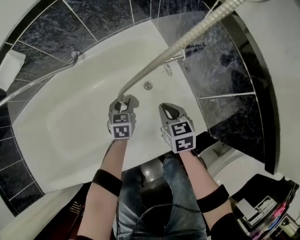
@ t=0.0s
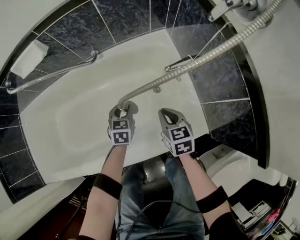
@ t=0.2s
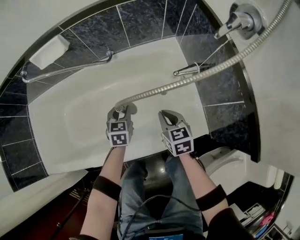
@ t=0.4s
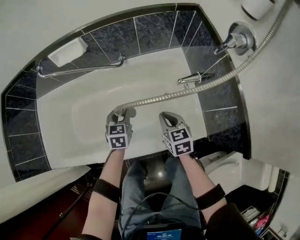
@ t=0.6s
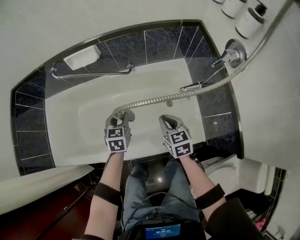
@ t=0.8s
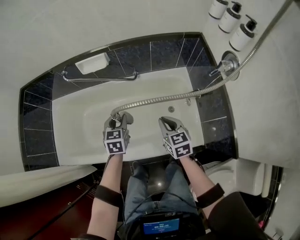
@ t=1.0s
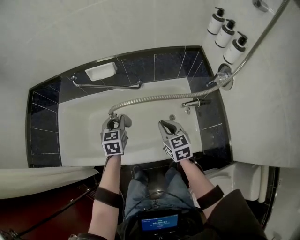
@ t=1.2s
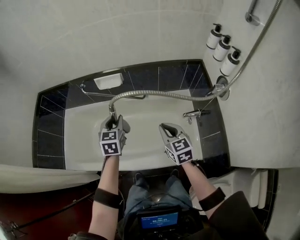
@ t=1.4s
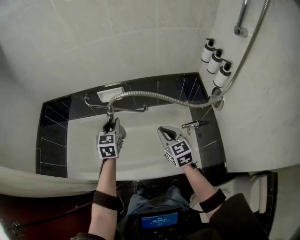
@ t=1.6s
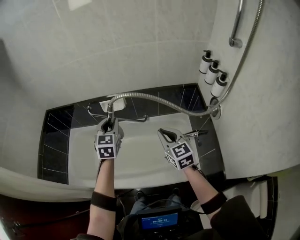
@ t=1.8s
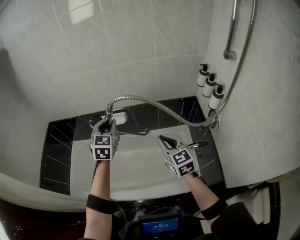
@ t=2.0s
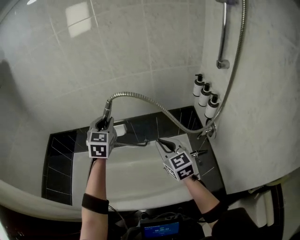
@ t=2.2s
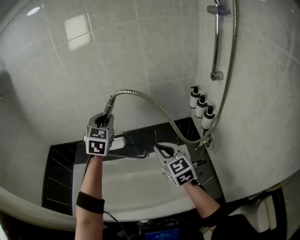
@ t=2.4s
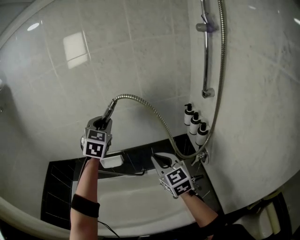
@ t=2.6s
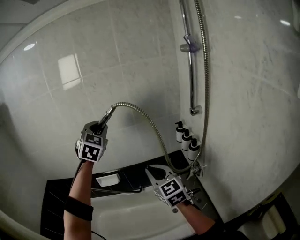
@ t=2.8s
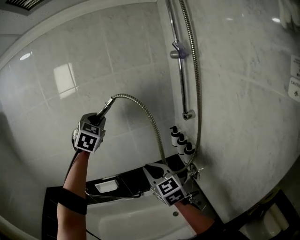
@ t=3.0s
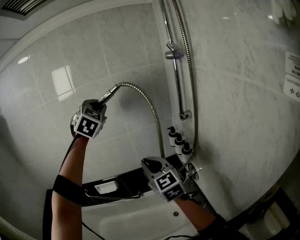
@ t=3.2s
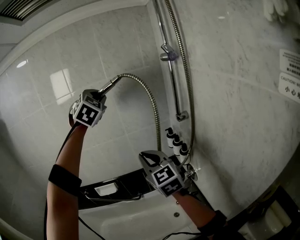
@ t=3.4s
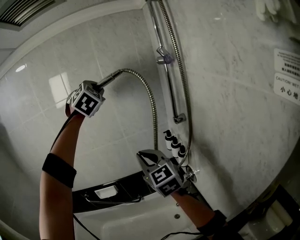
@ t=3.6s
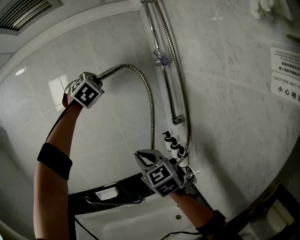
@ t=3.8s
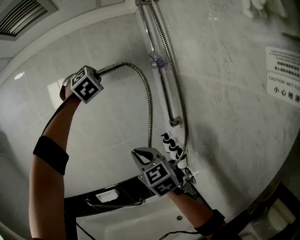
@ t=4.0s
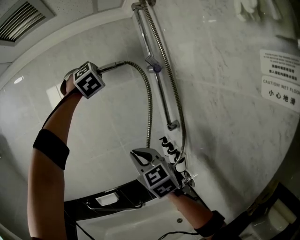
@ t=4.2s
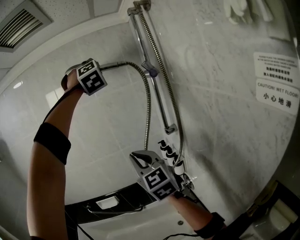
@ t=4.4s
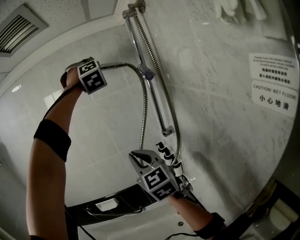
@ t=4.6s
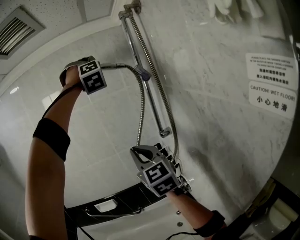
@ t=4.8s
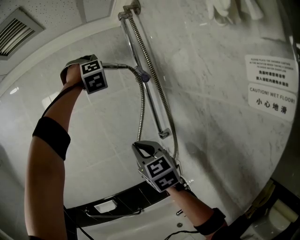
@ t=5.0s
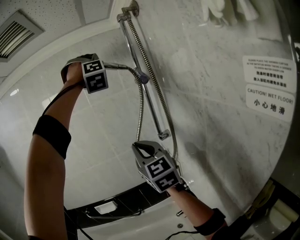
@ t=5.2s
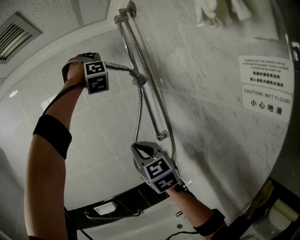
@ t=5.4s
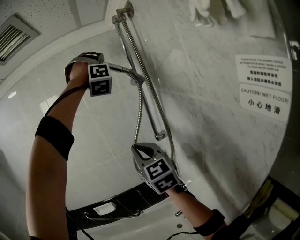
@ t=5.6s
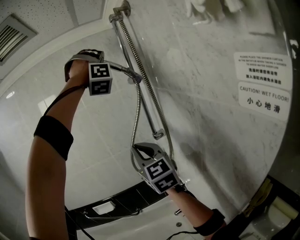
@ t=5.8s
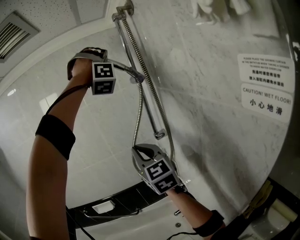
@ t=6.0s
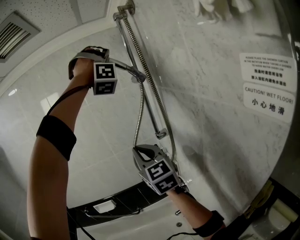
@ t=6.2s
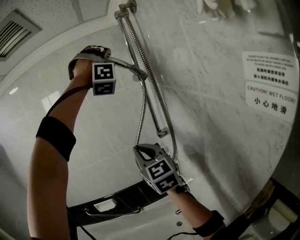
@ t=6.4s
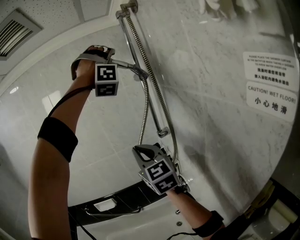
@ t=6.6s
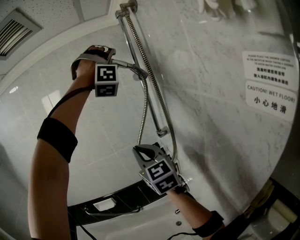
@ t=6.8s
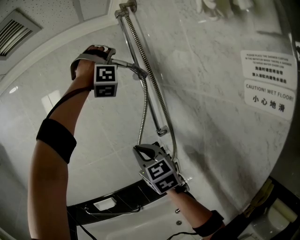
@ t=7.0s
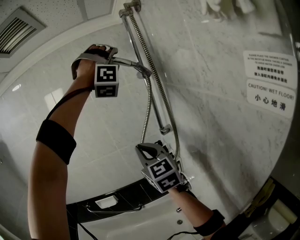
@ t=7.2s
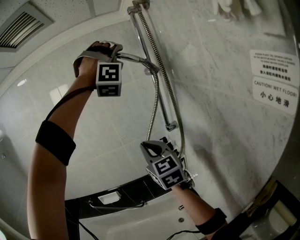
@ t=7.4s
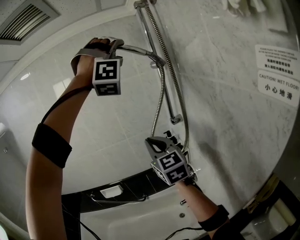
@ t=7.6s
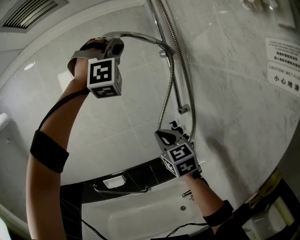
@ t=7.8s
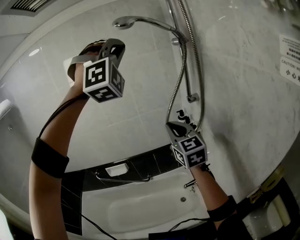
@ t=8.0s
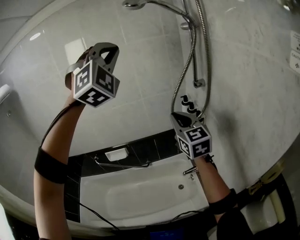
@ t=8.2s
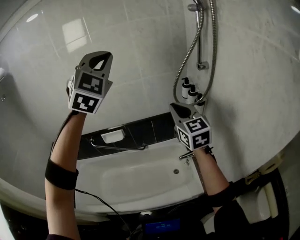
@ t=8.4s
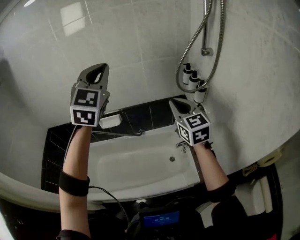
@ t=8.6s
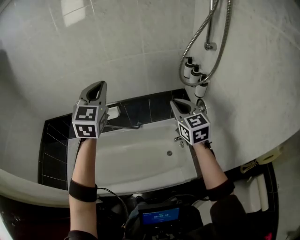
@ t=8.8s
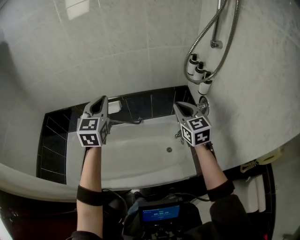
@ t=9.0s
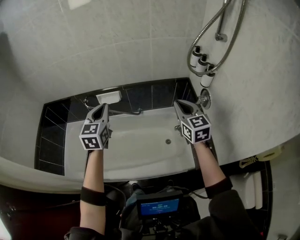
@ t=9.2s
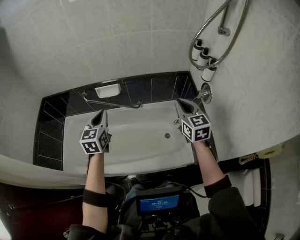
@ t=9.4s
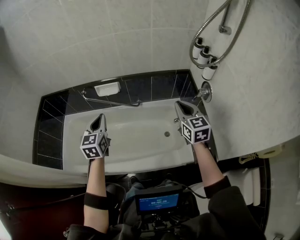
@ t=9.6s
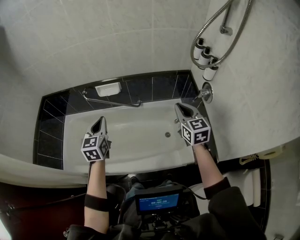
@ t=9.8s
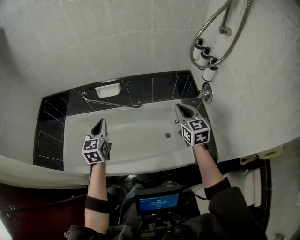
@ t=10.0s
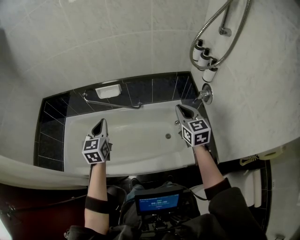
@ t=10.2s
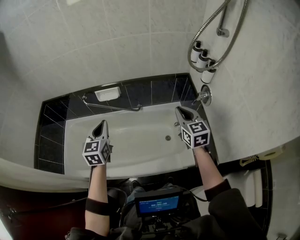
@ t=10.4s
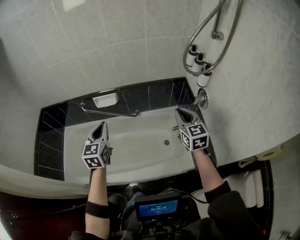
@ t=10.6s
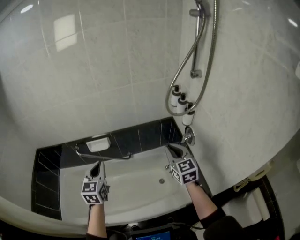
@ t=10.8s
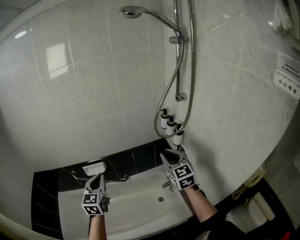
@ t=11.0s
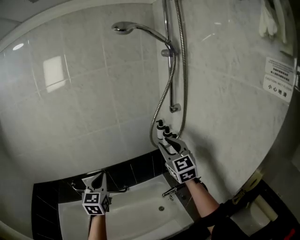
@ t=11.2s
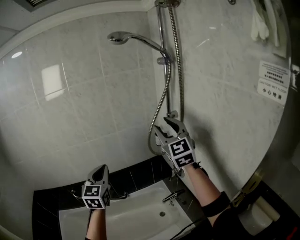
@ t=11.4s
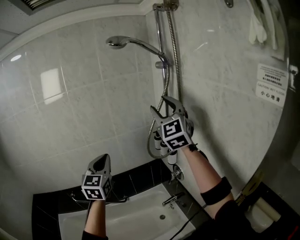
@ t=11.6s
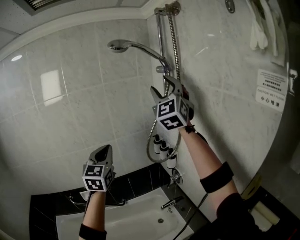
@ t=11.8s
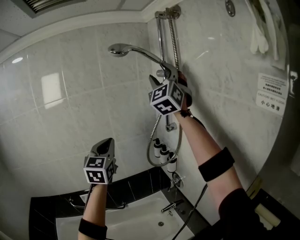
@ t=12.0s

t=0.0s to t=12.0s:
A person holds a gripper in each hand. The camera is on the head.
t=0.0s to t=1.6s: The grippers both shift upward by some 60 cm. The left gripper turns by about 30 degrees, while the right gripper changes its angle by some 40 degrees.
t=1.6s to t=3.0s: The right gripper goes roughly 30 cm upward, and swivels roughly 20 degrees. The left gripper is displaced upward and to the right by about 50 cm, and rolls clockwise, seen from behind, by roughly 40 degrees.
t=3.0s to t=4.4s: The left gripper goes some 30 cm upward and to the right, and twists some 40 degrees clockwise, seen from behind, while the right gripper is displaced upward by some 15 cm.
t=4.4s to t=6.0s: The two grippers go approximately 10 cm to the right. The left gripper changes its angle by roughly 40 degrees.
t=6.0s to t=7.6s: The right gripper shifts by about 5 cm, while the left gripper heads backward, covering approximately 10 cm, and opens.
t=7.6s to t=9.0s: The right gripper shifts roughly 25 cm downward, and rotates some 20 degrees, while the left gripper moves downward and to the left, approximately 60 cm, rolls counterclockwise, seen from behind, by approximately 110 degrees, and closes up.
t=9.0s to t=10.4s: The right gripper is displaced downward by approximately 10 cm, while the left gripper shifts roughly 15 cm downward and backward.
t=10.4s to t=12.0s: The left gripper travels upward by about 35 cm, and turns by about 40 degrees, while the right gripper heads upward, covering roughly 60 cm, tips its fingers upward by some 40 degrees, and opens.

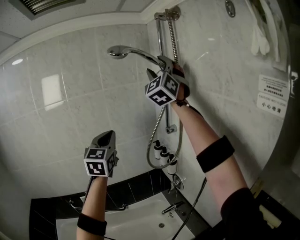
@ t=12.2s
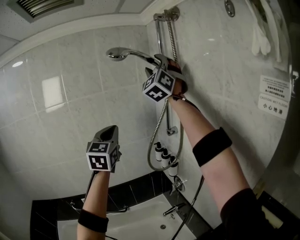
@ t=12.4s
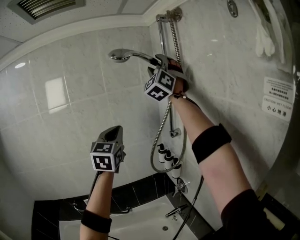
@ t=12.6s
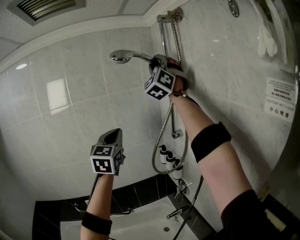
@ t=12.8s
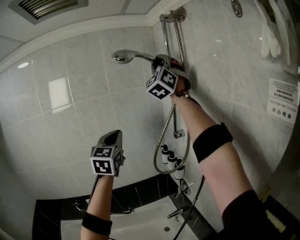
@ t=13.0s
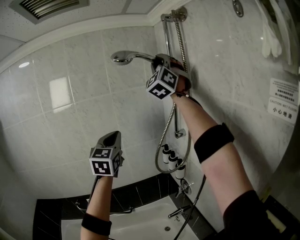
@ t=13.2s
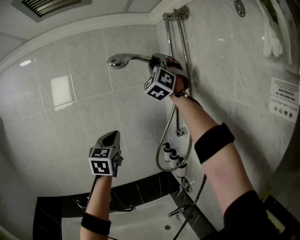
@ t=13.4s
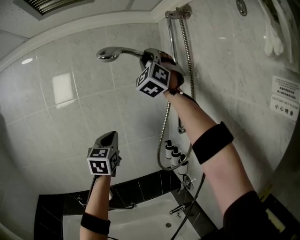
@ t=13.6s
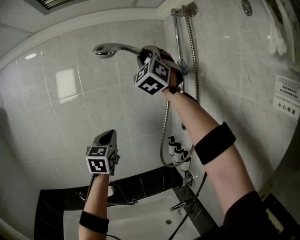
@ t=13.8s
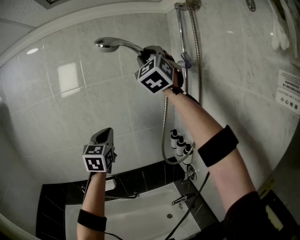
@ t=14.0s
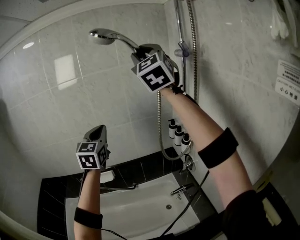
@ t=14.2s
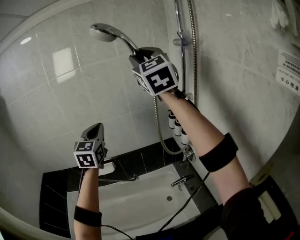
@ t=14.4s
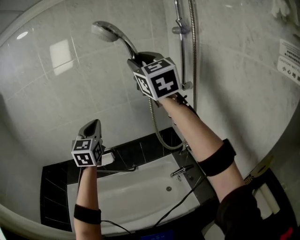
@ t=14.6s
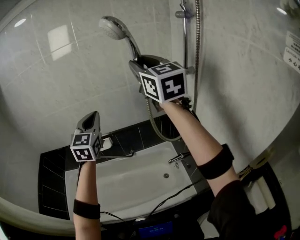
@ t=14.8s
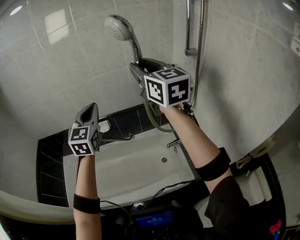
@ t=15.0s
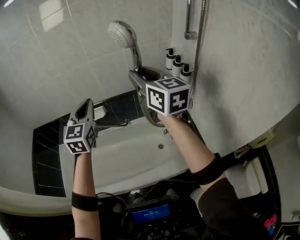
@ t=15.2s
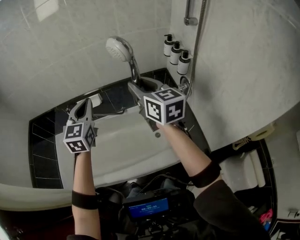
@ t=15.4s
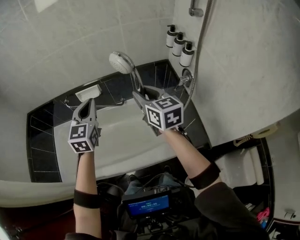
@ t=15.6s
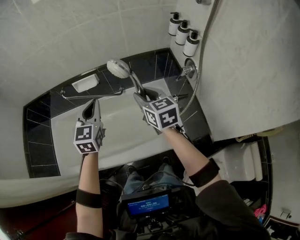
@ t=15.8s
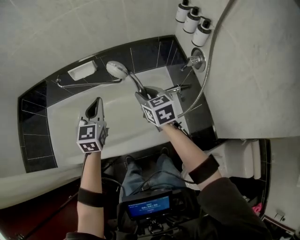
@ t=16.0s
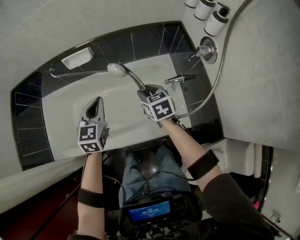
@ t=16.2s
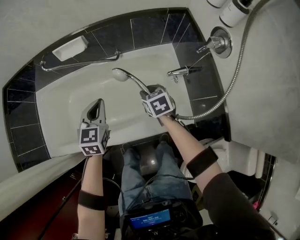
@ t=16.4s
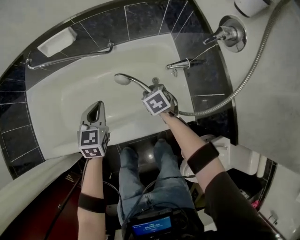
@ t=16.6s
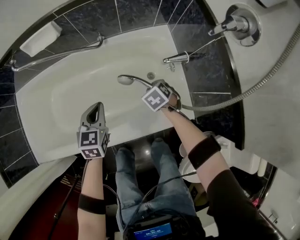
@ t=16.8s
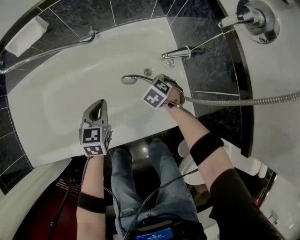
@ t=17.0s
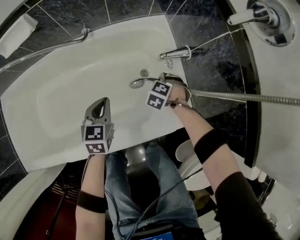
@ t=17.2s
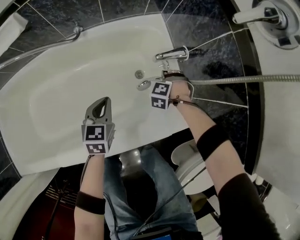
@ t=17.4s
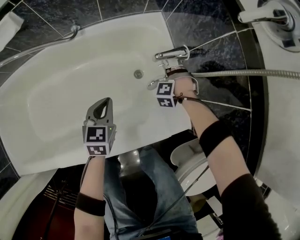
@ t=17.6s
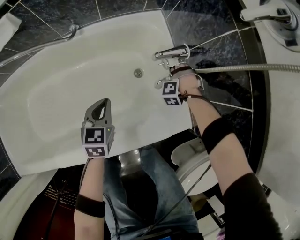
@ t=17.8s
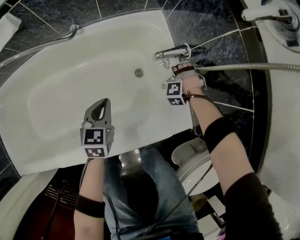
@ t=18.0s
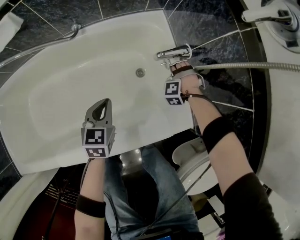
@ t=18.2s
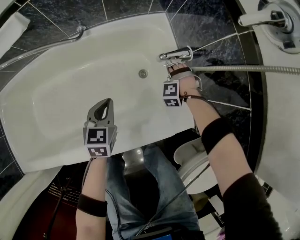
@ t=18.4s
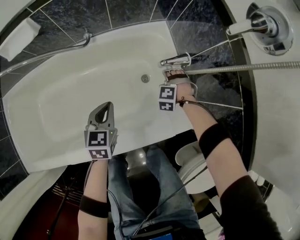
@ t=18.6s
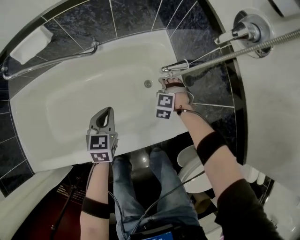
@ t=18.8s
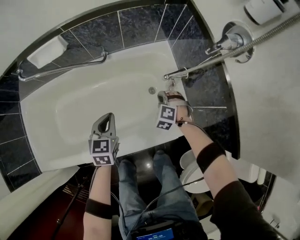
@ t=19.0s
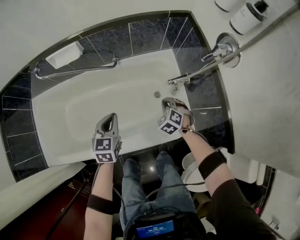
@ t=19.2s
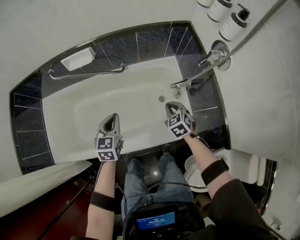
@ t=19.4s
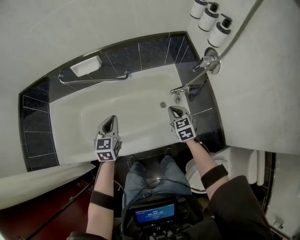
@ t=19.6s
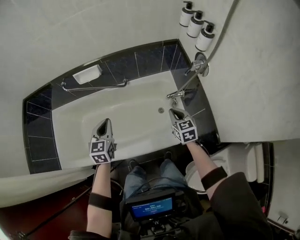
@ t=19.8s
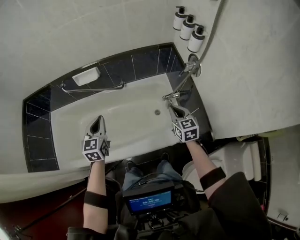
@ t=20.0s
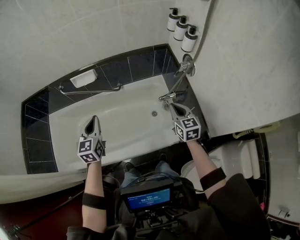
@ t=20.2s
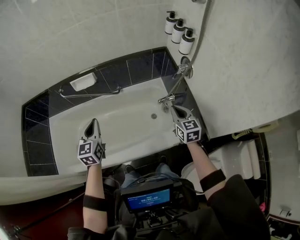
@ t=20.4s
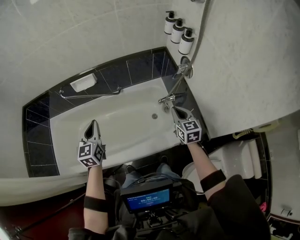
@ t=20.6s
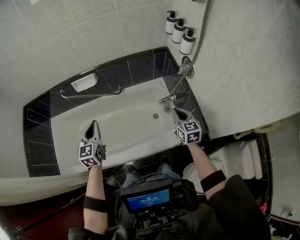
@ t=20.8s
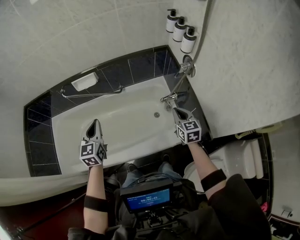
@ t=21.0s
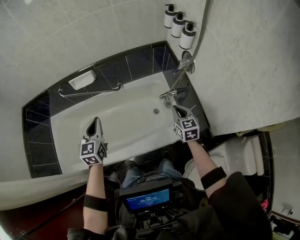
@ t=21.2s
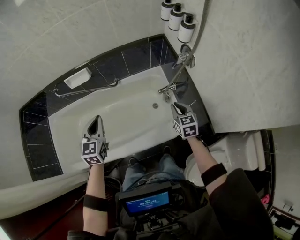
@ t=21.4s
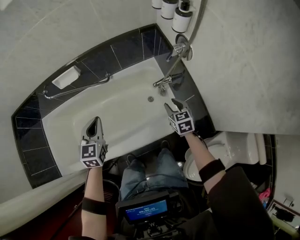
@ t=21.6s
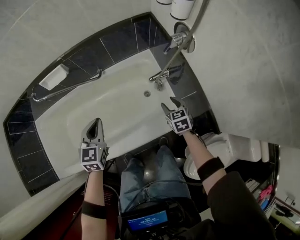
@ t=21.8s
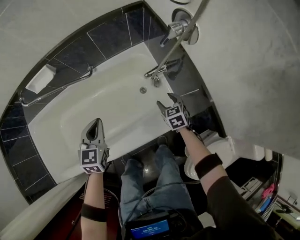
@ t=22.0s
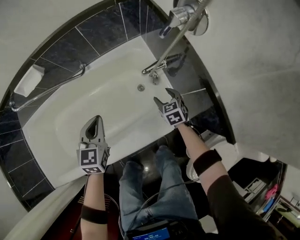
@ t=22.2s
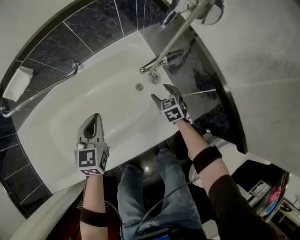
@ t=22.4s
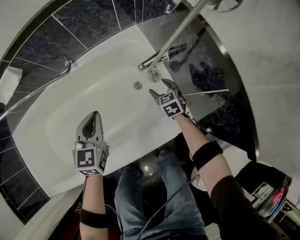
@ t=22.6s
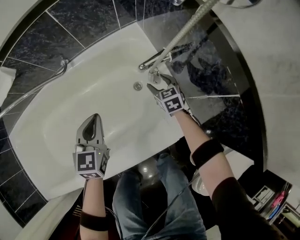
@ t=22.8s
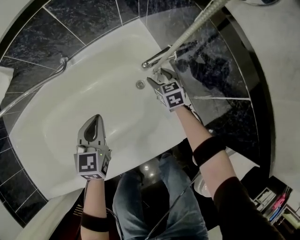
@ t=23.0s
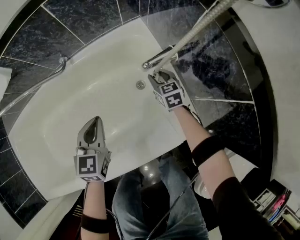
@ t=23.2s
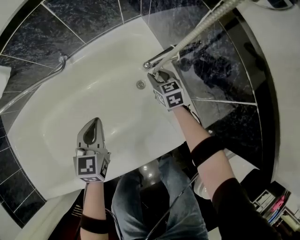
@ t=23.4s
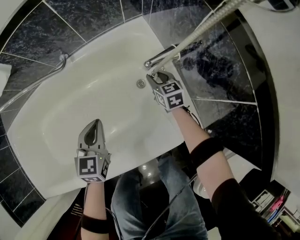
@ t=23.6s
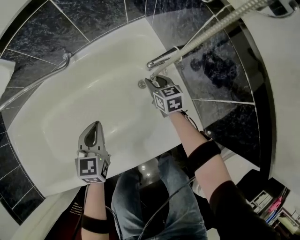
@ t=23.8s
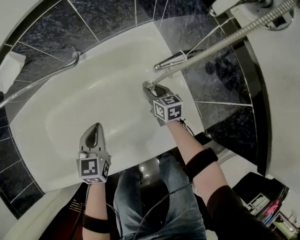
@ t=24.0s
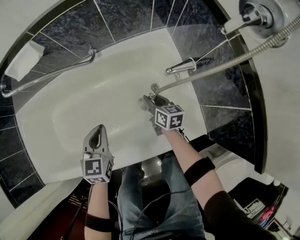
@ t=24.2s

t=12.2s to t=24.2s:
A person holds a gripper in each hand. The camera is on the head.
t=12.2s to t=13.8s: The right gripper is displaced to the left by about 10 cm, and closes. The left gripper travels to the left by approximately 5 cm.
t=13.8s to t=15.2s: The right gripper moves downward, some 40 cm, and twists approximately 70 degrees clockwise, seen from behind; the left gripper shifts about 25 cm downward, to the left and backward.
t=15.2s to t=16.6s: Both grippers move downward, approximately 60 cm. The left gripper angles its fingers downward, by approximately 30 degrees. Meanwhile the right gripper angles its fingers downward, by roughly 60 degrees.
t=16.6s to t=18.2s: The grippers both shift downward by some 25 cm. The right gripper rotates around the line of its fingers by about 80 degrees, counterclockwise from behind, and opens up.
t=18.2s to t=19.8s: The two grippers go approximately 50 cm upward. The right gripper twists about 90 degrees clockwise, seen from behind, and closes.
t=19.8s to t=21.2s: The right gripper goes approximately 5 cm to the right. The left gripper heads upward, covering some 5 cm.
t=21.2s to t=22.6s: The left gripper goes roughly 40 cm downward and to the right; the right gripper moves downward, roughly 50 cm, and opens its fingers.
t=22.6s to t=24.2s: The left gripper heads to the left and backward, covering about 15 cm, while the right gripper travels to the left by approximately 15 cm, turns by about 40 degrees, and closes its fingers.
